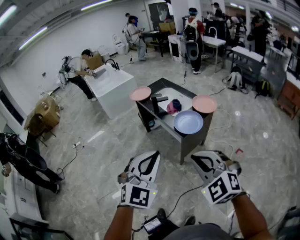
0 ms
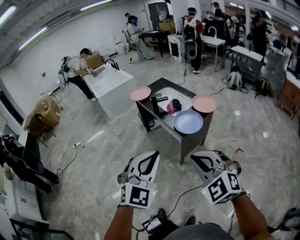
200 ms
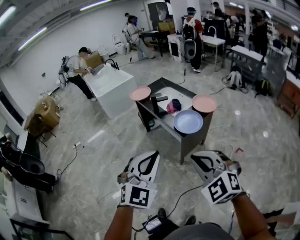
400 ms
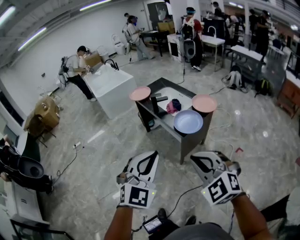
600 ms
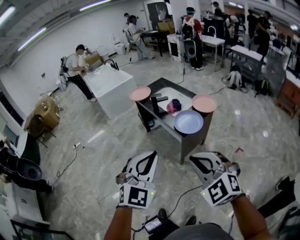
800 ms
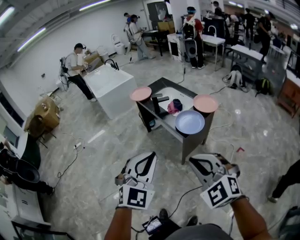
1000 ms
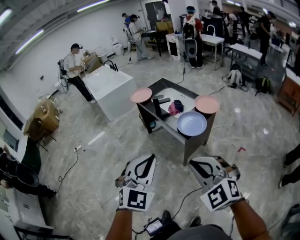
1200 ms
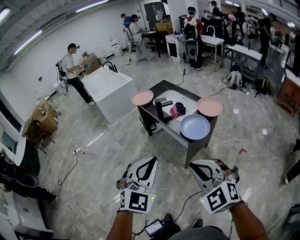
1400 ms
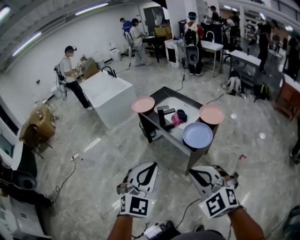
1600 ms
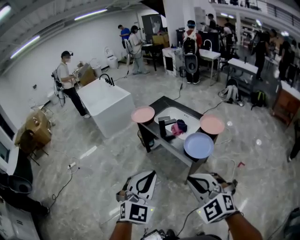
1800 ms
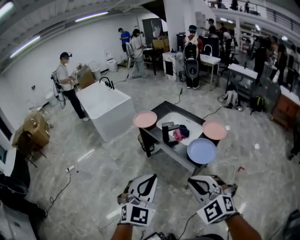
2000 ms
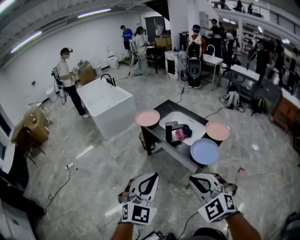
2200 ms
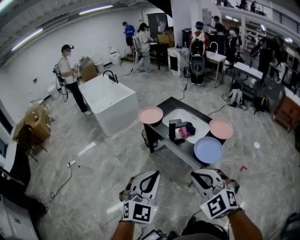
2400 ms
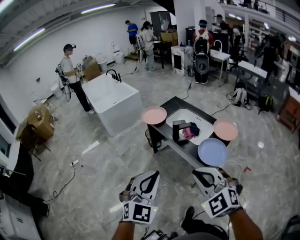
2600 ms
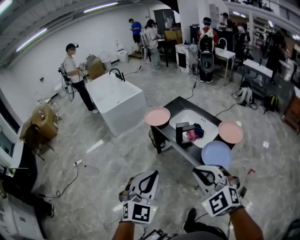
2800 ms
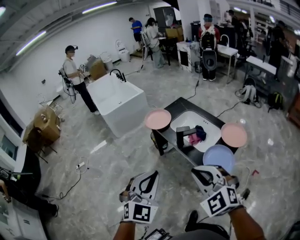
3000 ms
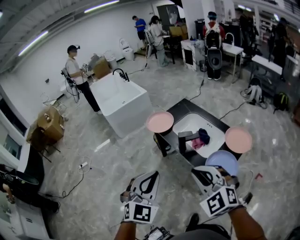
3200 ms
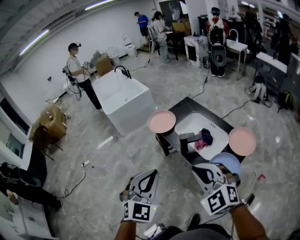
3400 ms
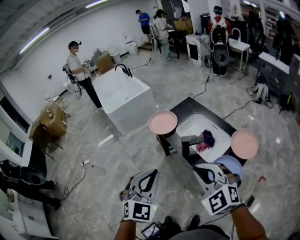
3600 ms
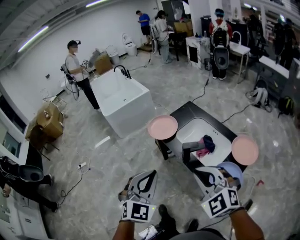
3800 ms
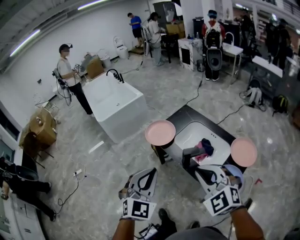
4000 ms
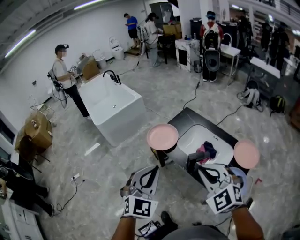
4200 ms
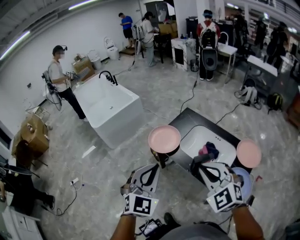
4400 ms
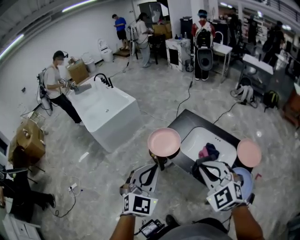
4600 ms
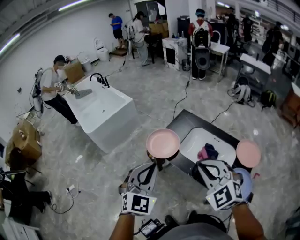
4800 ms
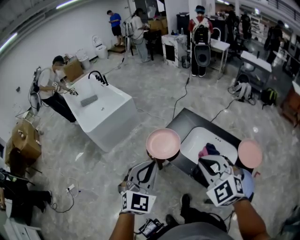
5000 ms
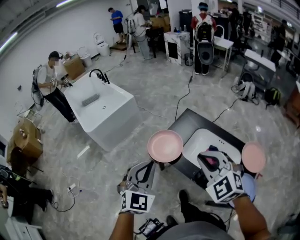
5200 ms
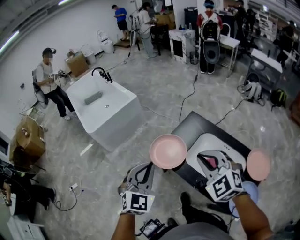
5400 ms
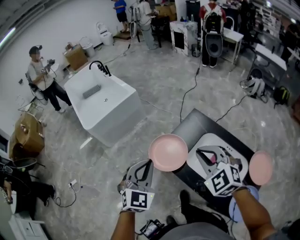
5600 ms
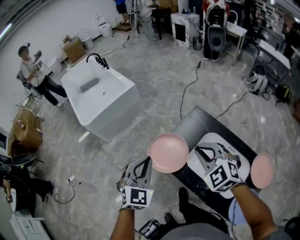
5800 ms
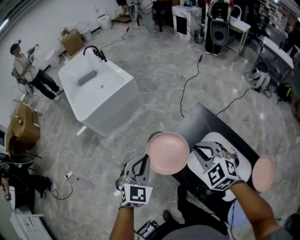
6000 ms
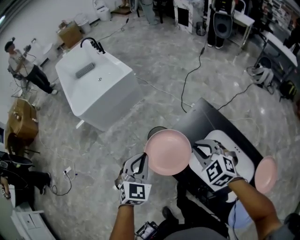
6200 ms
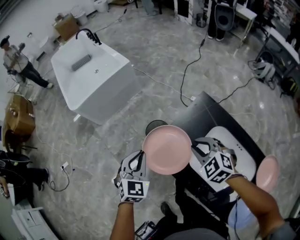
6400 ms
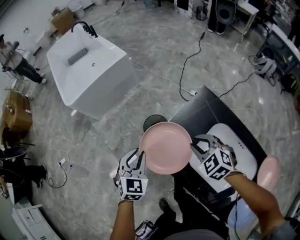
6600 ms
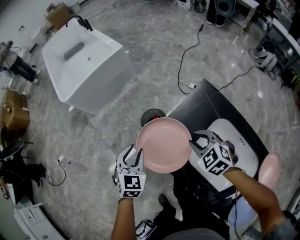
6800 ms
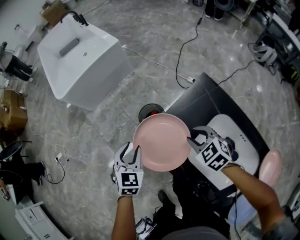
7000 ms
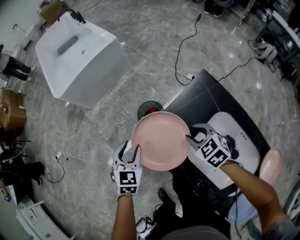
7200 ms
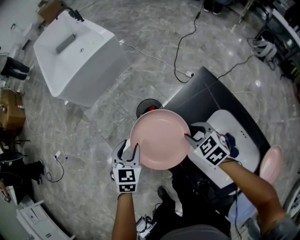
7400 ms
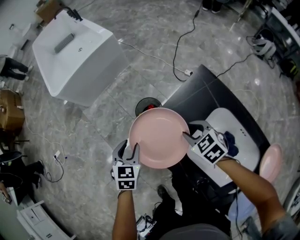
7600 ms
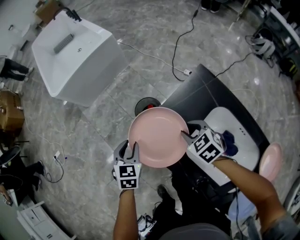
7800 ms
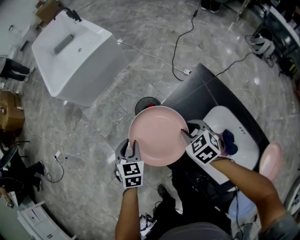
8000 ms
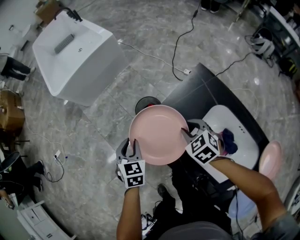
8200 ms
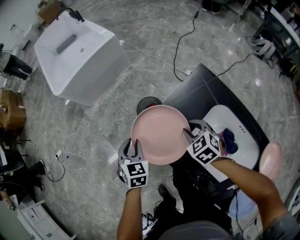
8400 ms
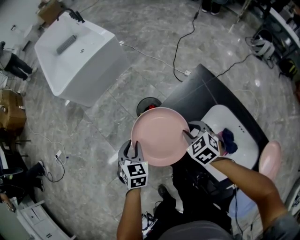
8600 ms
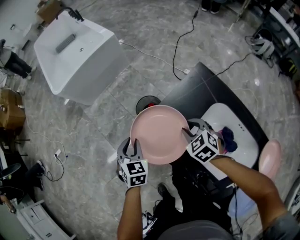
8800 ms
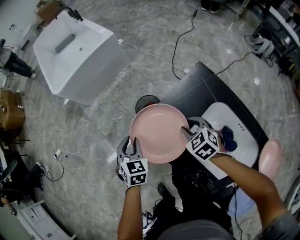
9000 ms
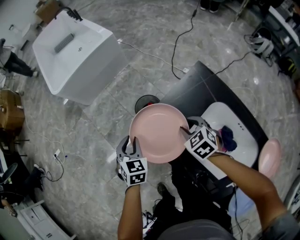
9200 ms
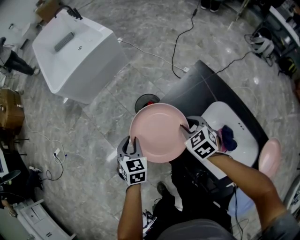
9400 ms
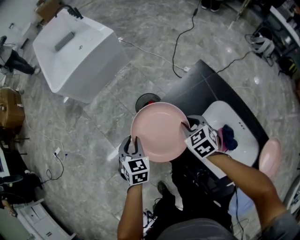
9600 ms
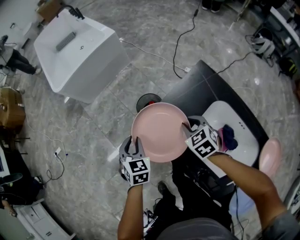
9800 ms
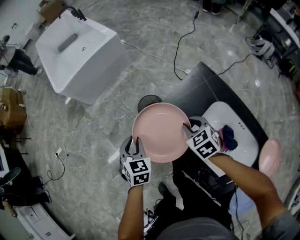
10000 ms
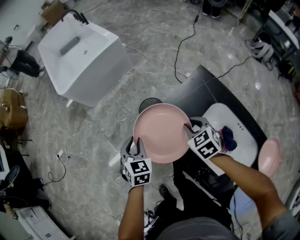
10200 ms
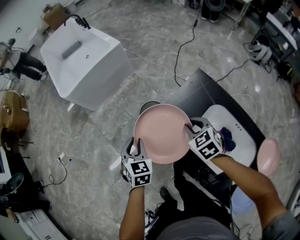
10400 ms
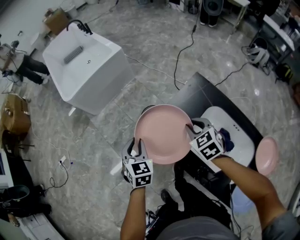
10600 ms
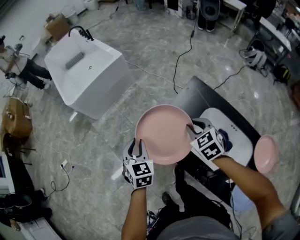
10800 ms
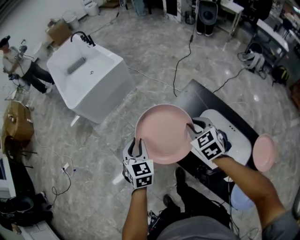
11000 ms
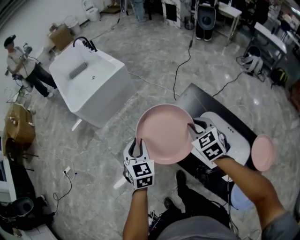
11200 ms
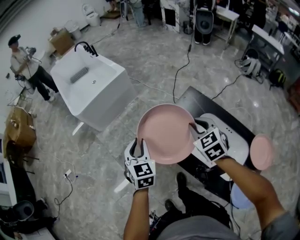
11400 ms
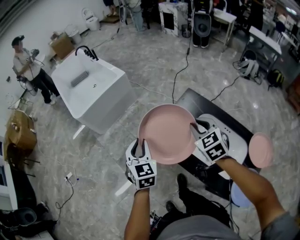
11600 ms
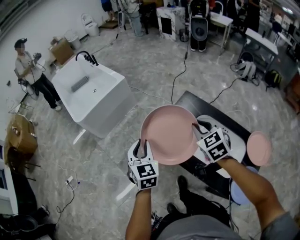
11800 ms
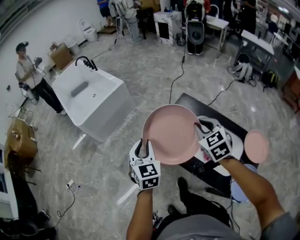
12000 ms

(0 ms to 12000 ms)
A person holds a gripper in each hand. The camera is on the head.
0 ms - 1600 ms: The right gripper travels to the left and forward by approximately 10 cm. Meanwhile the left gripper heads forward and to the left, covering roughly 15 cm.
1600 ms - 3000 ms: The left gripper goes approximately 20 cm forward and to the left. Meanwhile the right gripper shifts some 20 cm forward.
3000 ms - 4400 ms: The grippers both shift forward by some 30 cm.
4400 ms - 6000 ms: The two grippers go about 35 cm forward and downward.
6000 ms - 7600 ms: Both grippers travel together downward, approximately 25 cm. The right gripper turns by some 30 degrees, and opens up; the left gripper turns by roughly 30 degrees, and opens.
7600 ms - 9000 ms: The grippers move only a little.
9000 ms - 10400 ms: Both grippers move upward, some 5 cm.
10400 ms - 12000 ms: The right gripper travels upward and backward by about 25 cm, and changes its angle by approximately 20 degrees. The left gripper is displaced upward by approximately 20 cm, and swivels about 20 degrees.

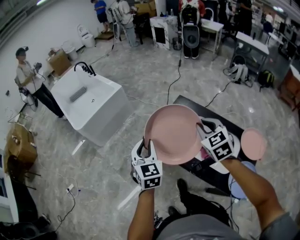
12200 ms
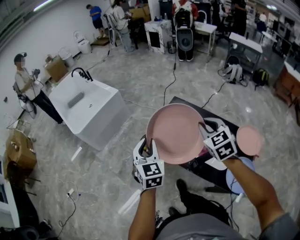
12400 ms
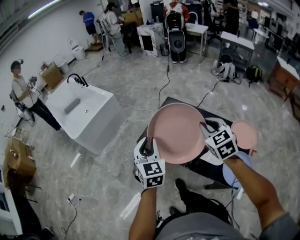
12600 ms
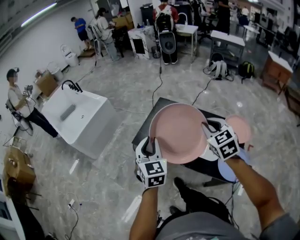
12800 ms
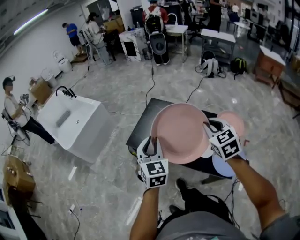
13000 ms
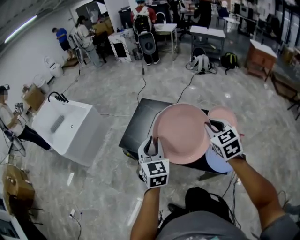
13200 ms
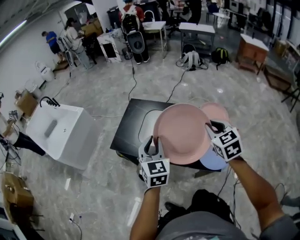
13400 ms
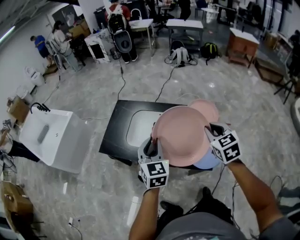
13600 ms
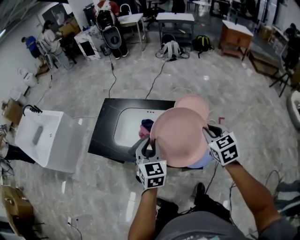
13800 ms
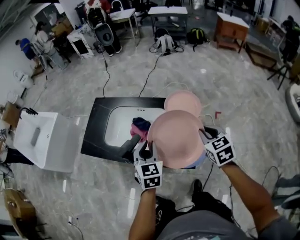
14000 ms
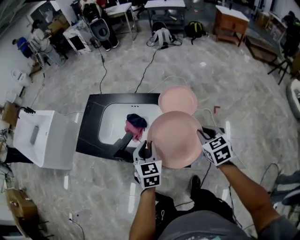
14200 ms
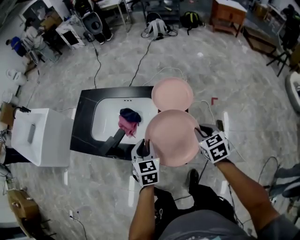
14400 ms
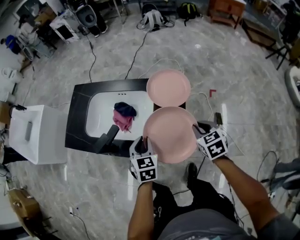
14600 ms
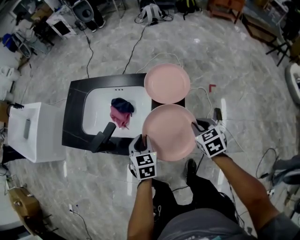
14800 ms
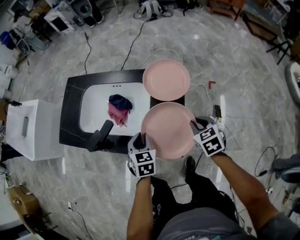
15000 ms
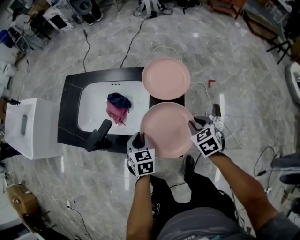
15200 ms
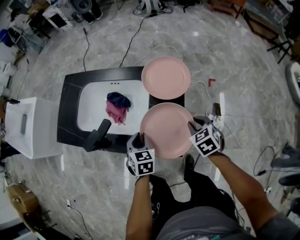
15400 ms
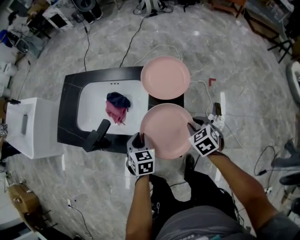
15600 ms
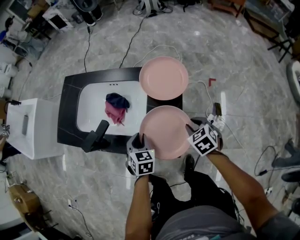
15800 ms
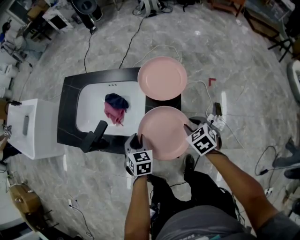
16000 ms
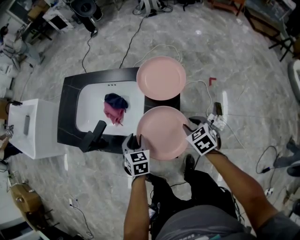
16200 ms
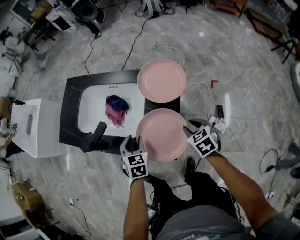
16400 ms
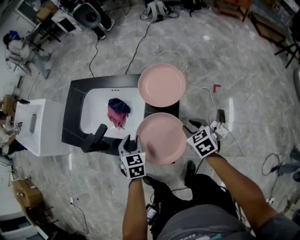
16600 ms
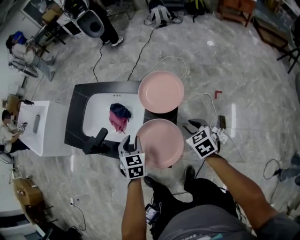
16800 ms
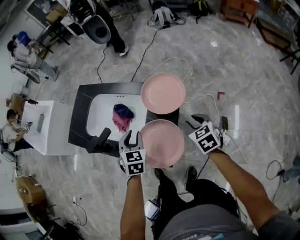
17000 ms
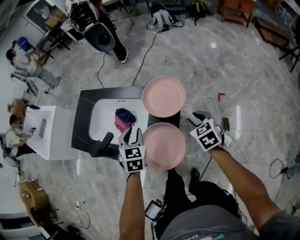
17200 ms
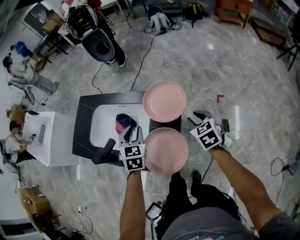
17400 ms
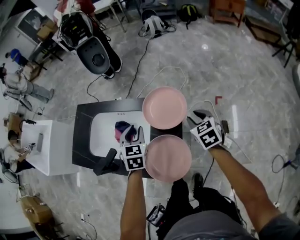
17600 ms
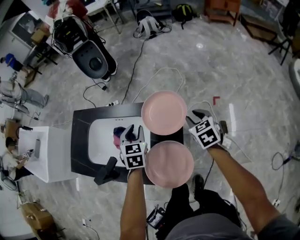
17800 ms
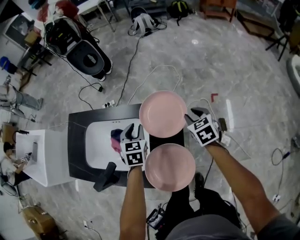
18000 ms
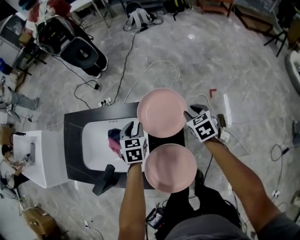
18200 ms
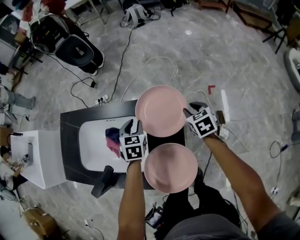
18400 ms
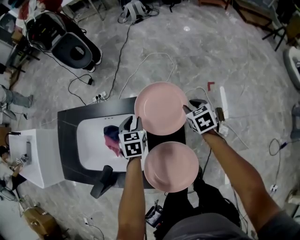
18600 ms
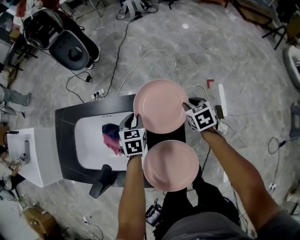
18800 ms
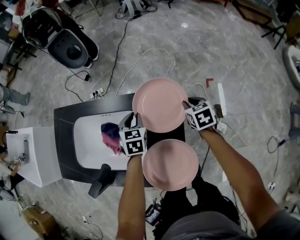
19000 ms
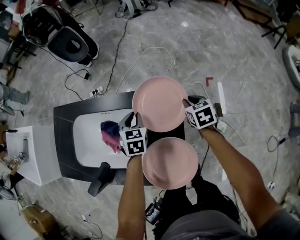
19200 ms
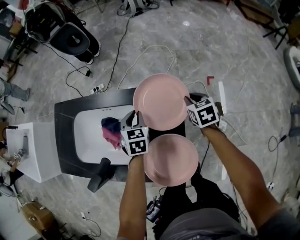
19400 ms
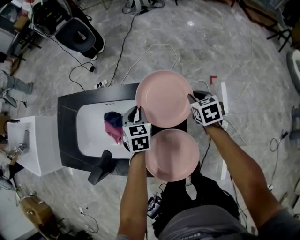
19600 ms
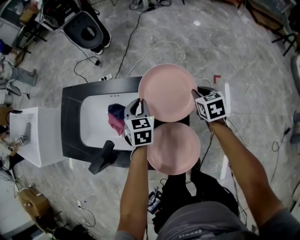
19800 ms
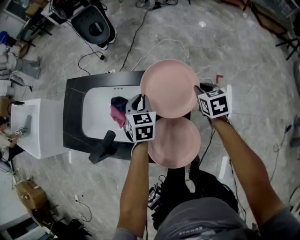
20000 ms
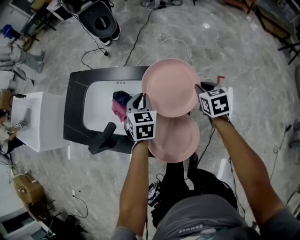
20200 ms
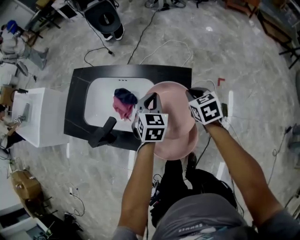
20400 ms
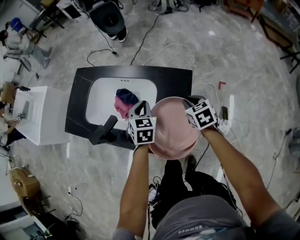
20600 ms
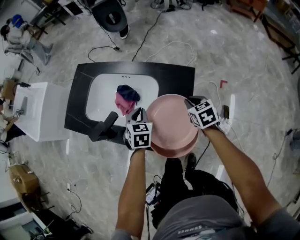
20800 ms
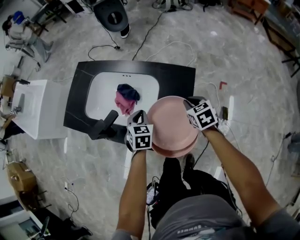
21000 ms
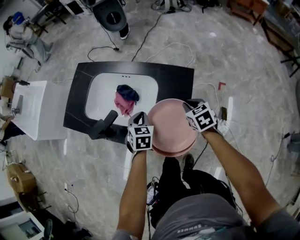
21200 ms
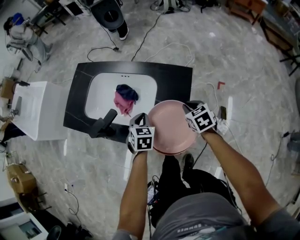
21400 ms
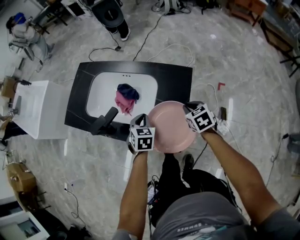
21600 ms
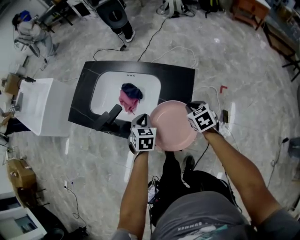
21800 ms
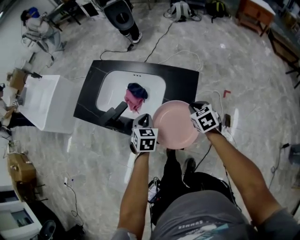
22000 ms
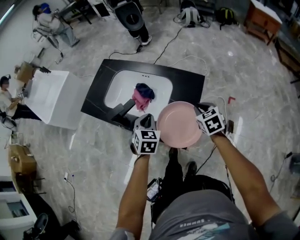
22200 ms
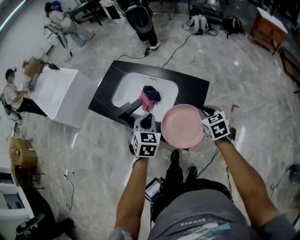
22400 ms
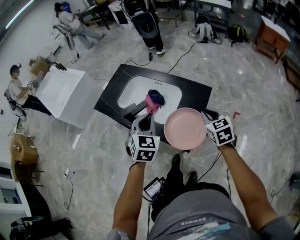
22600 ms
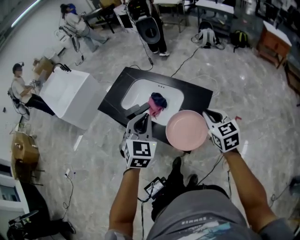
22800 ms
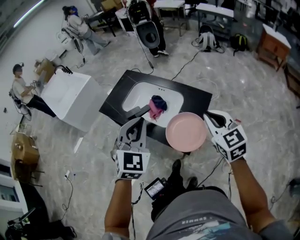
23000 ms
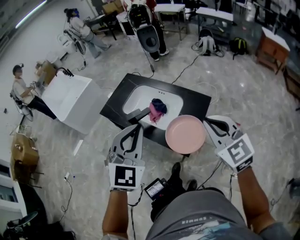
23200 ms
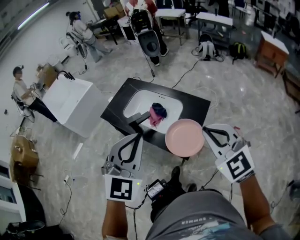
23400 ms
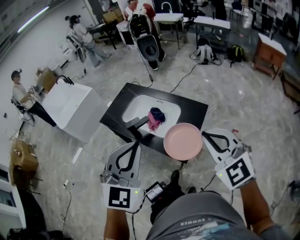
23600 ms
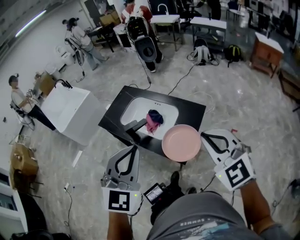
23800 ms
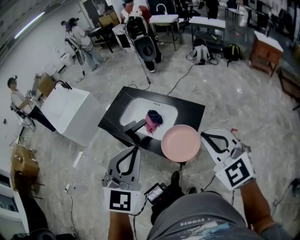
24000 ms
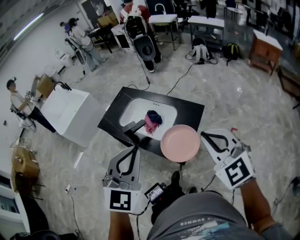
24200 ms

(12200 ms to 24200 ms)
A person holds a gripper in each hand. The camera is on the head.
12200 ms - 13800 ms: The right gripper ends up some 40 cm from where it was, and turns by roughly 30 degrees; the left gripper ends up approximately 40 cm from where it was, and changes its angle by roughly 30 degrees.
13800 ms - 15200 ms: Both grippers move downward and to the right, approximately 25 cm. The left gripper changes its angle by roughly 20 degrees.
15200 ms - 16600 ms: The grippers make only small movements.
16600 ms - 18200 ms: The left gripper goes some 20 cm forward, while the right gripper is displaced forward and to the right by about 20 cm.
18200 ms - 19800 ms: There are only small adjustments of the grippers.
19800 ms - 21200 ms: The right gripper shifts approximately 15 cm to the left and backward; the left gripper goes approximately 15 cm backward and to the left.
21200 ms - 22600 ms: The two grippers go approximately 20 cm upward and backward. The left gripper changes its angle by approximately 20 degrees.
22600 ms - 24200 ms: The grippers both shift upward and backward by roughly 25 cm. The left gripper swivels about 30 degrees. Meanwhile the right gripper rotates roughly 40 degrees.
